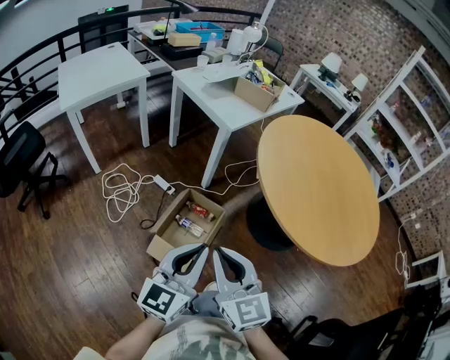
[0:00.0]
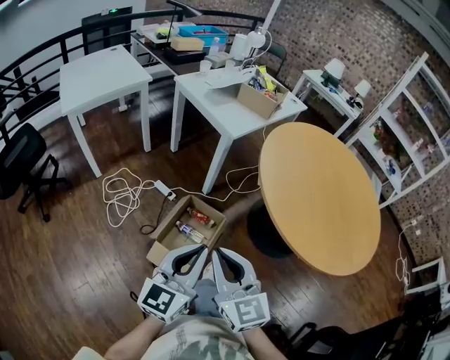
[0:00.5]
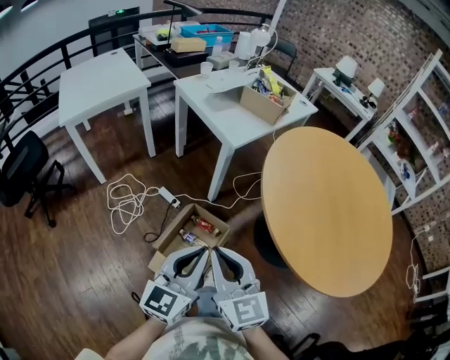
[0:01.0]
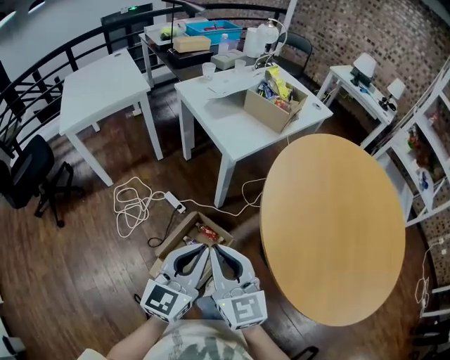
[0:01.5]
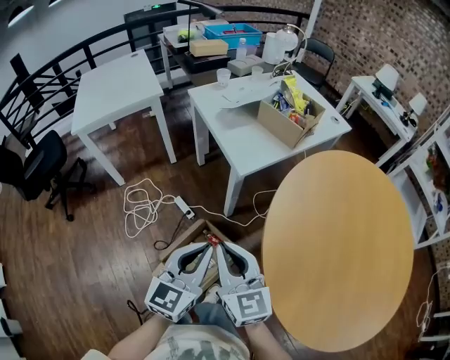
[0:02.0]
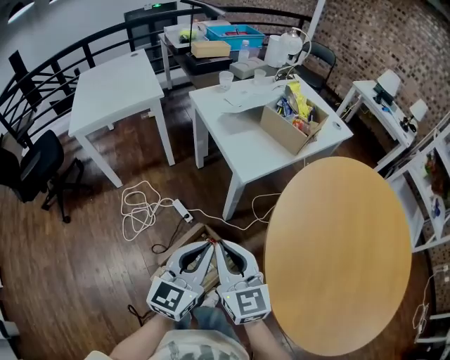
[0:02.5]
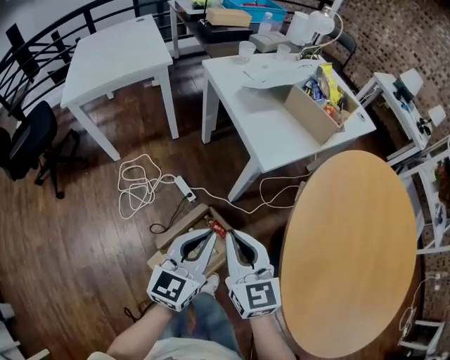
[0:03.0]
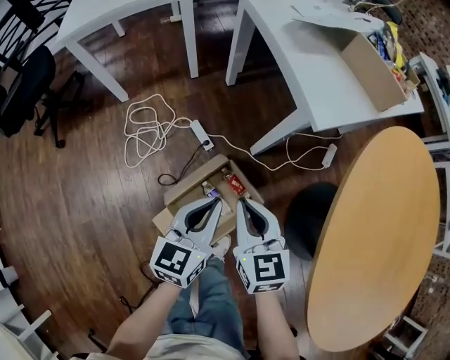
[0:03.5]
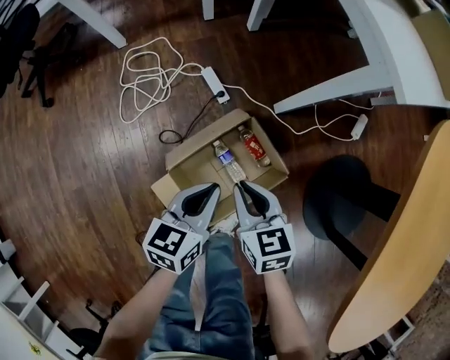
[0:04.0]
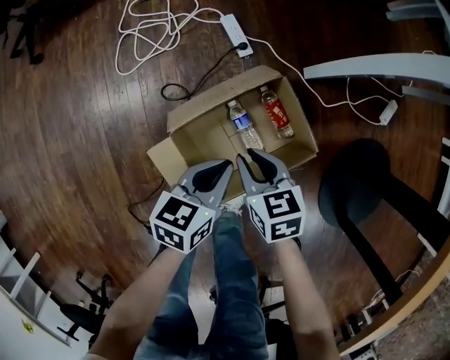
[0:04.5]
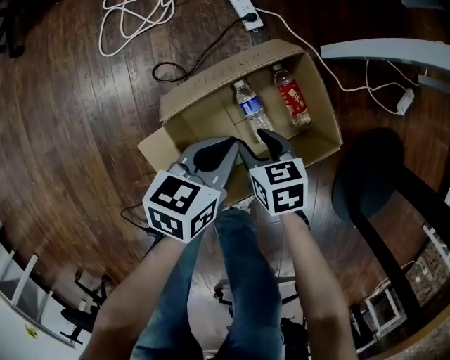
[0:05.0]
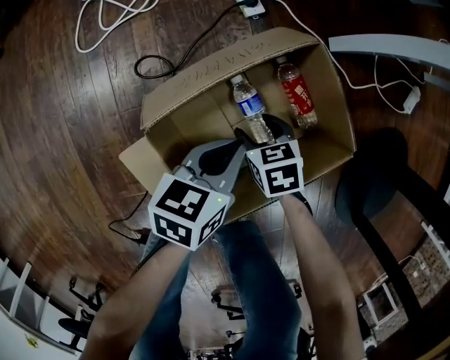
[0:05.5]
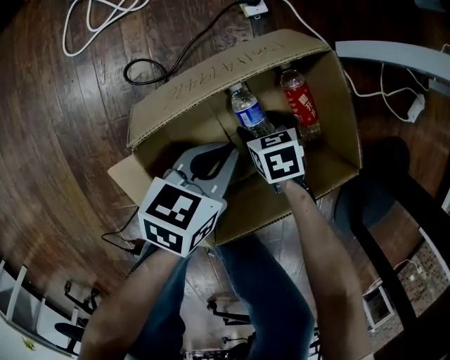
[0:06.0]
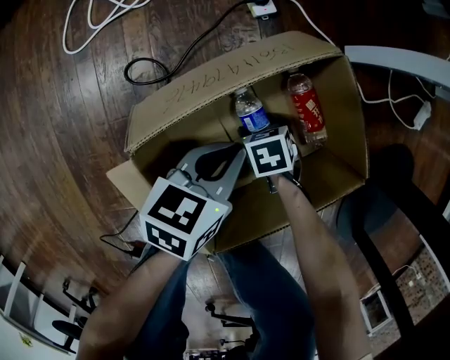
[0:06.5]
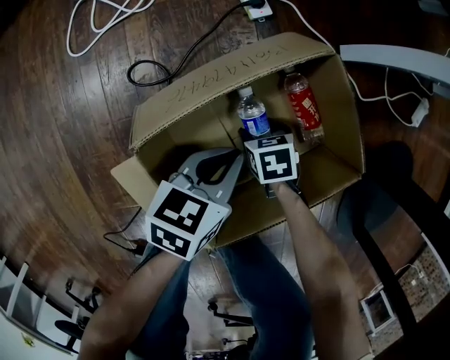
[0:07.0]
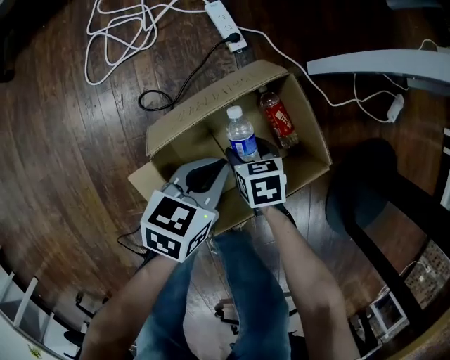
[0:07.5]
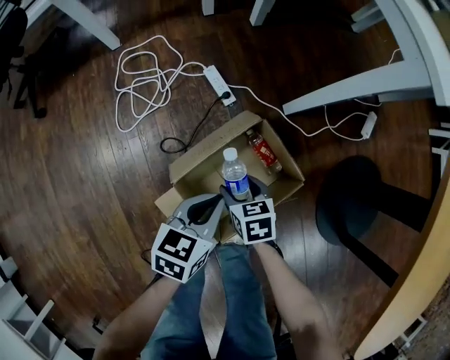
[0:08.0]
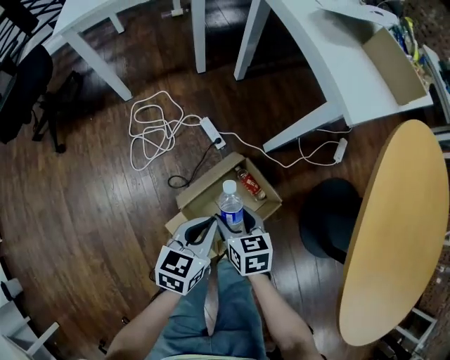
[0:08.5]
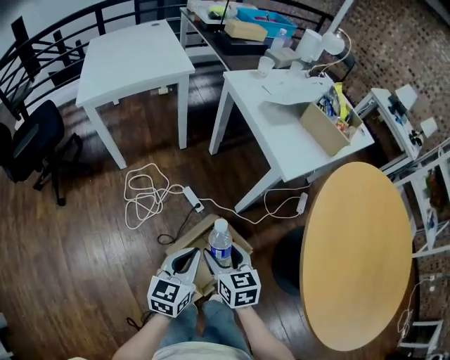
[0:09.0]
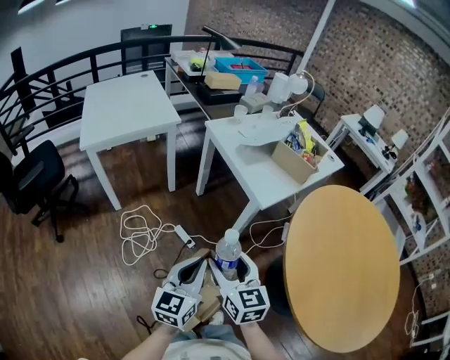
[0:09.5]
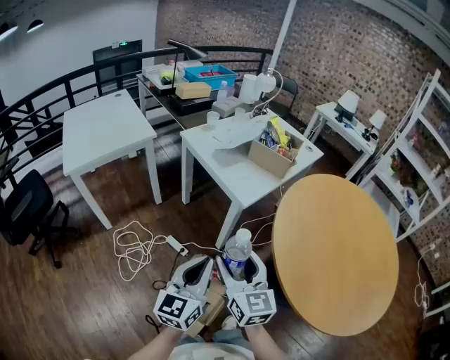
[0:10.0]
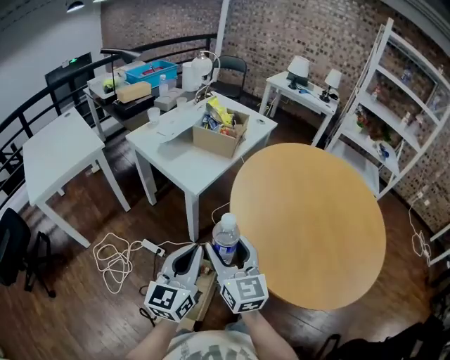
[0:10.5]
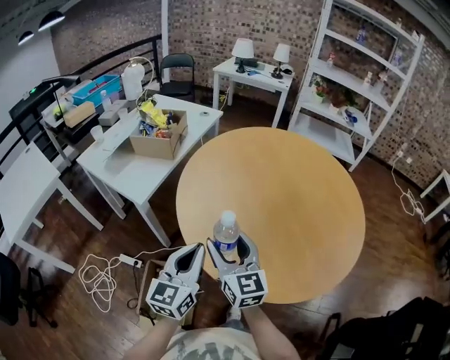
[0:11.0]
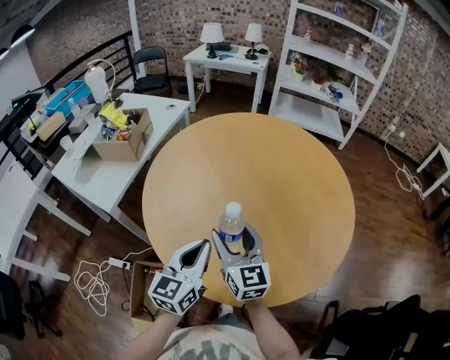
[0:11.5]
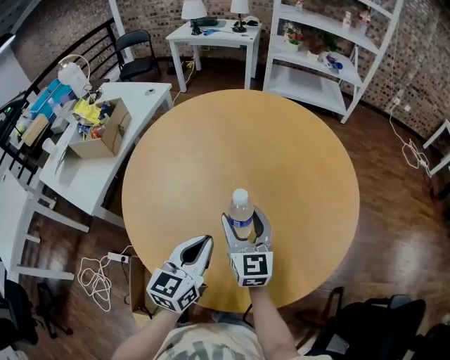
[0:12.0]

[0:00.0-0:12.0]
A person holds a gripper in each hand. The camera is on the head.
0:00.0 to 0:02.0: The two grippers go roughly 30 cm forward.
0:02.0 to 0:04.0: The two grippers go about 40 cm downward. The right gripper angles its fingers downward, by about 30 degrees. Meanwhile the left gripper turns by about 40 degrees.
0:04.0 to 0:06.0: Both grippers move downward, some 40 cm. The right gripper tilts its fingers roughly 30 degrees downward, and opens its fingers.
0:06.0 to 0:08.0: Both grippers move upward, roughly 30 cm. The right gripper swivels some 20 degrees.
0:08.0 to 0:10.0: Both grippers move upward, approximately 60 cm. The right gripper angles its fingers upward, by some 50 degrees. Meanwhile the left gripper tilts its fingers some 40 degrees upward.
0:10.0 to 0:12.0: The two grippers travel together, about 60 cm. The left gripper rotates some 40 degrees; the right gripper swivels roughly 40 degrees.

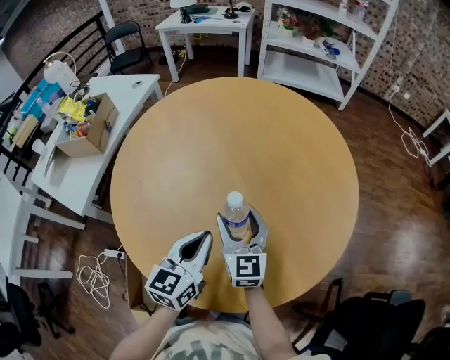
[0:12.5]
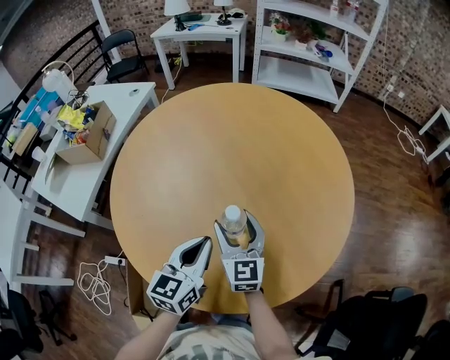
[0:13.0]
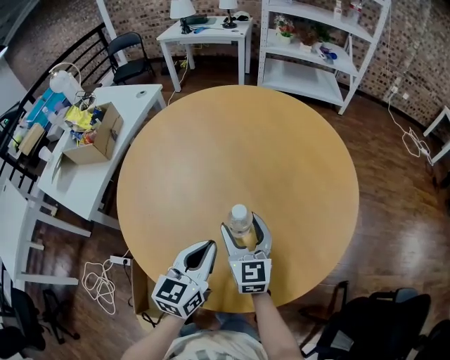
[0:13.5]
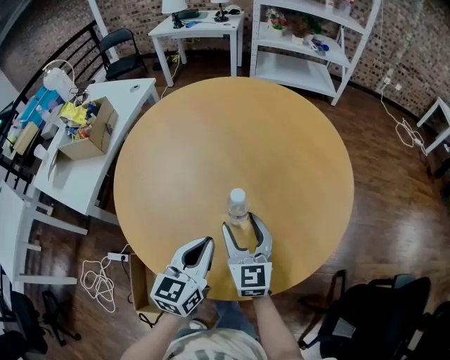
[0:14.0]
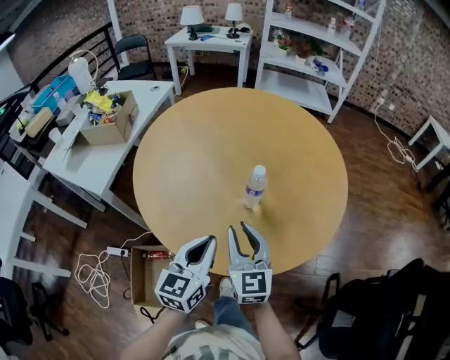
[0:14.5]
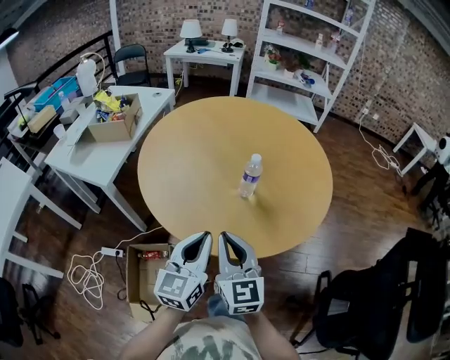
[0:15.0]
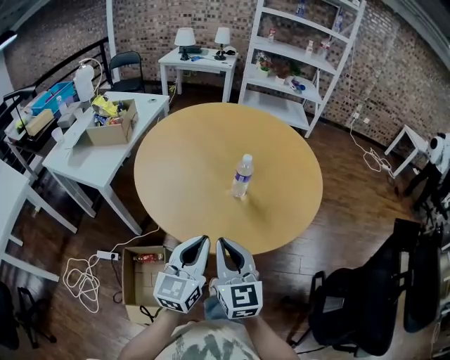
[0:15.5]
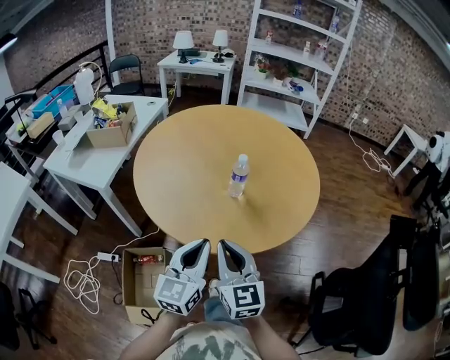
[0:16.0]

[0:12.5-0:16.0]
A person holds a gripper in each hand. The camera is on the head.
0:12.5 to 0:14.5: Both grippers travel together backward, roughly 15 cm. The right gripper closes.
0:14.5 to 0:16.0: The two grippers go about 15 cm backward.

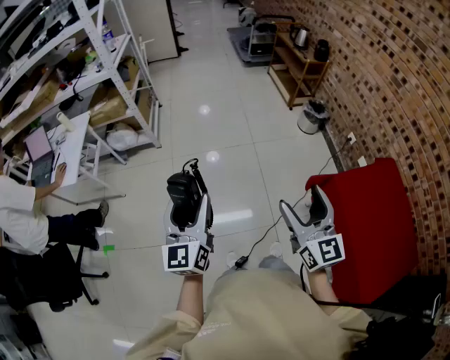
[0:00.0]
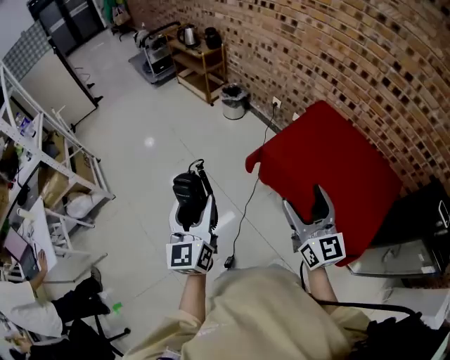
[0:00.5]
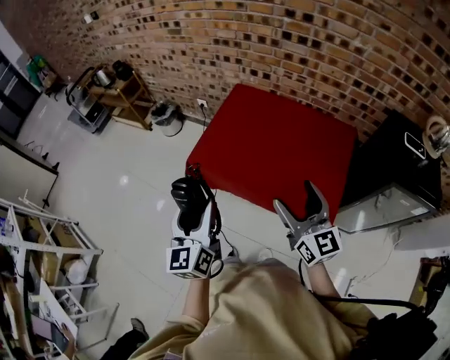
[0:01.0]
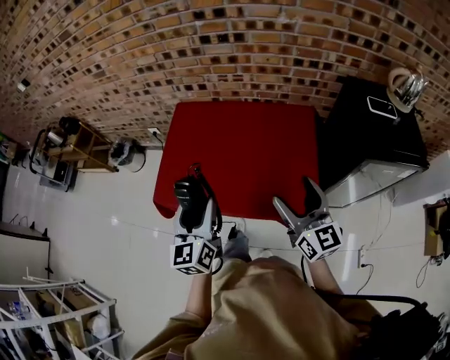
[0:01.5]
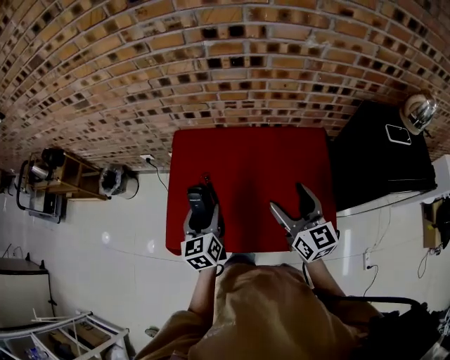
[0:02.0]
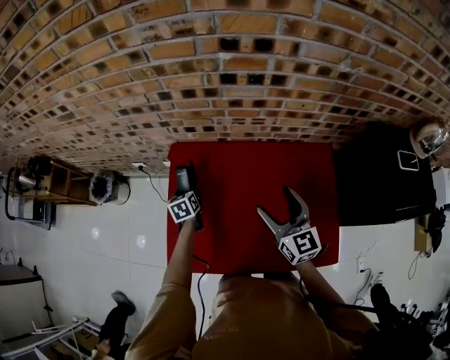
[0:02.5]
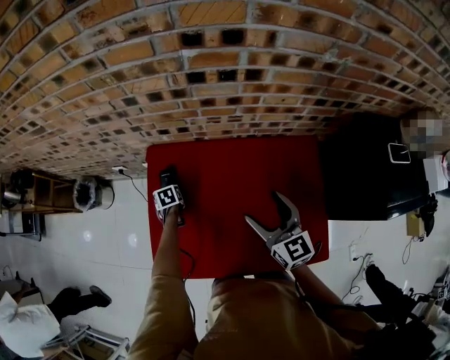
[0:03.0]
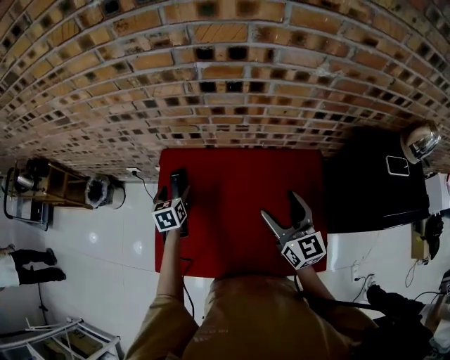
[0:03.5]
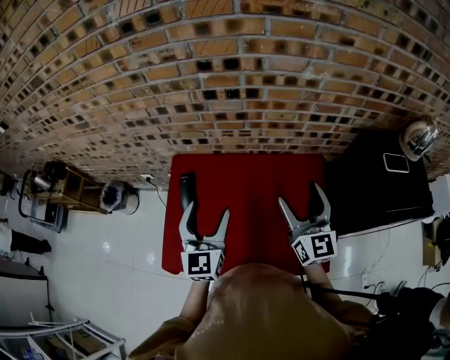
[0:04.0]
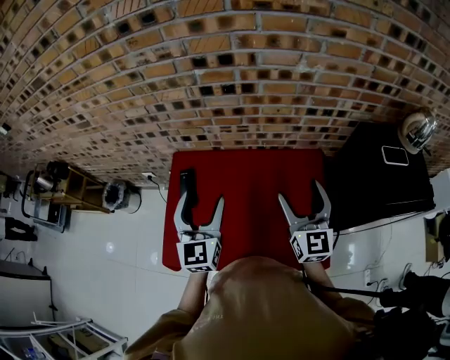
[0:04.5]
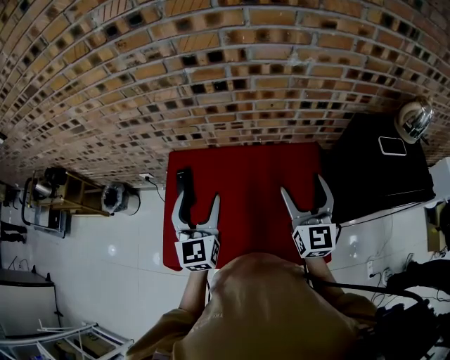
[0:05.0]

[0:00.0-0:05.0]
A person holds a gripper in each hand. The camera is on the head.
0:00.0 to 0:02.5: The two grippers travel together, approximately 1 m. The left gripper tips its fingers downward by about 60 degrees; the right gripper rotates approximately 60 degrees.
0:02.5 to 0:05.0: The left gripper heads upward, backward and to the right, covering about 50 cm, and angles its fingers upward, by roughly 40 degrees, while the right gripper goes some 25 cm to the right, upward and backward.

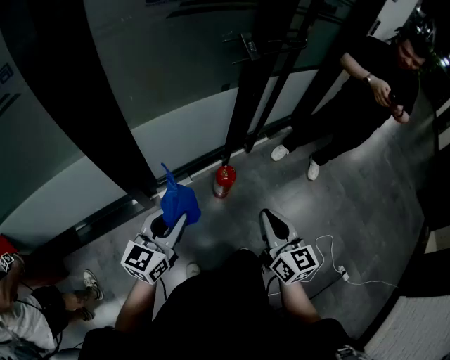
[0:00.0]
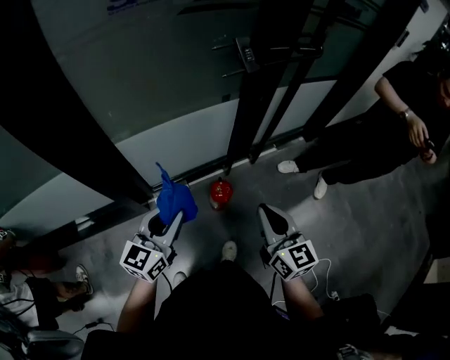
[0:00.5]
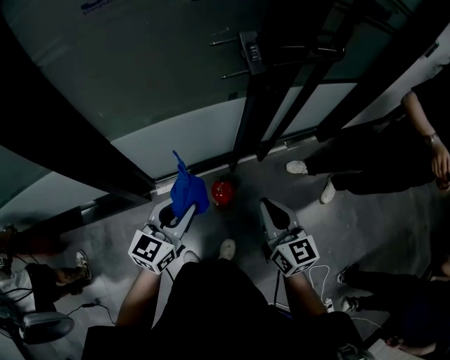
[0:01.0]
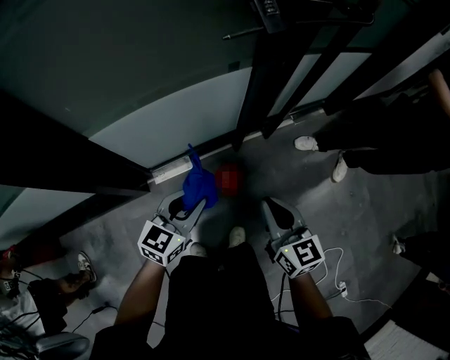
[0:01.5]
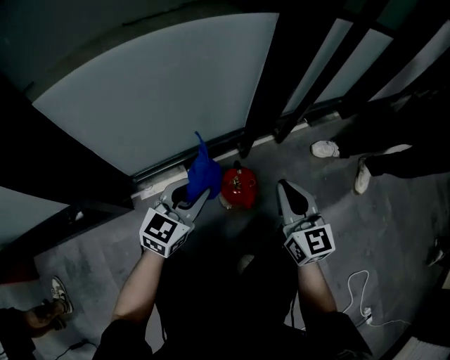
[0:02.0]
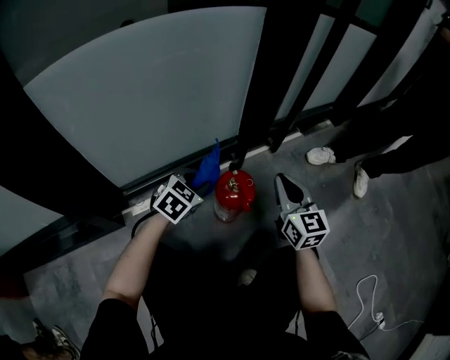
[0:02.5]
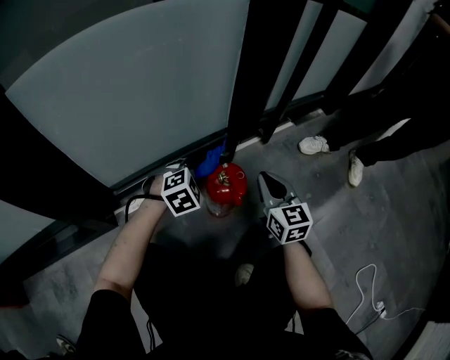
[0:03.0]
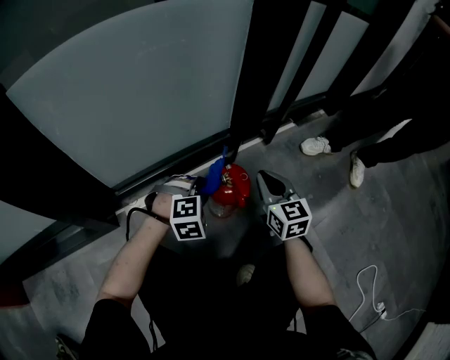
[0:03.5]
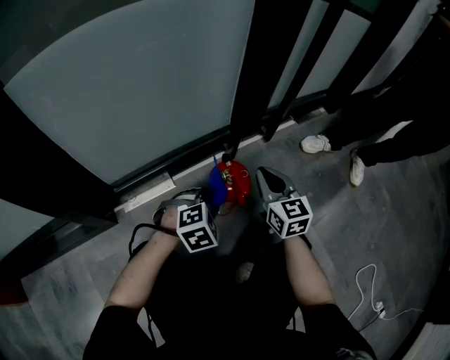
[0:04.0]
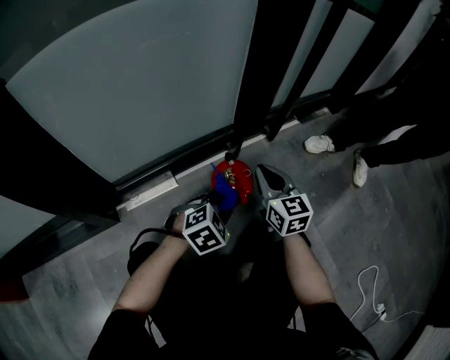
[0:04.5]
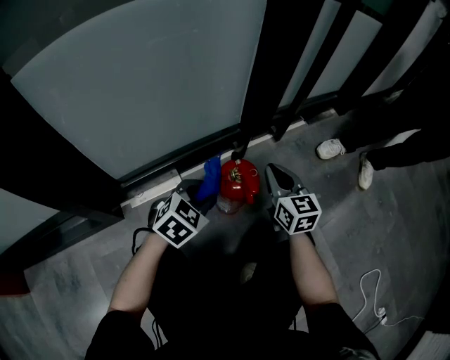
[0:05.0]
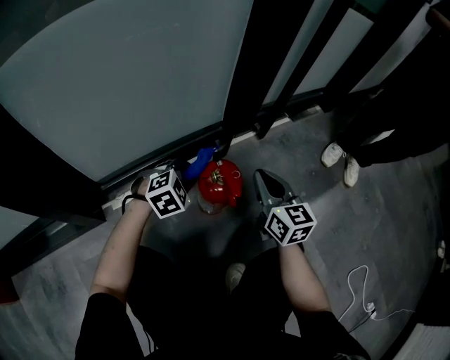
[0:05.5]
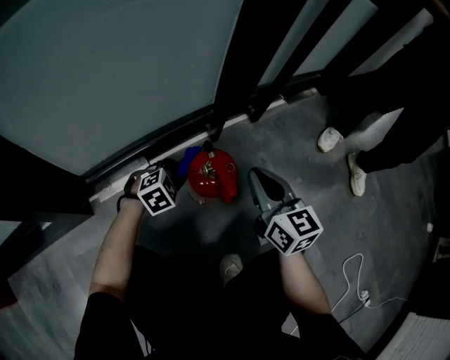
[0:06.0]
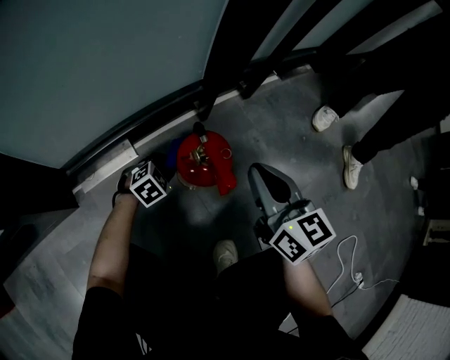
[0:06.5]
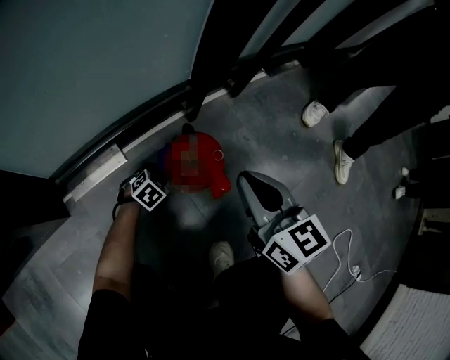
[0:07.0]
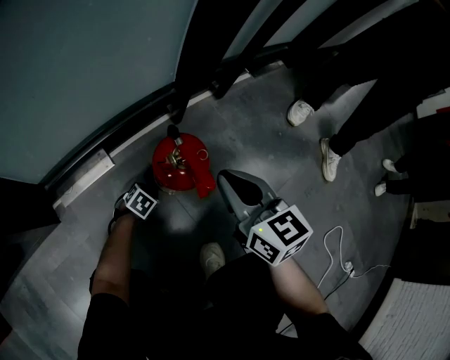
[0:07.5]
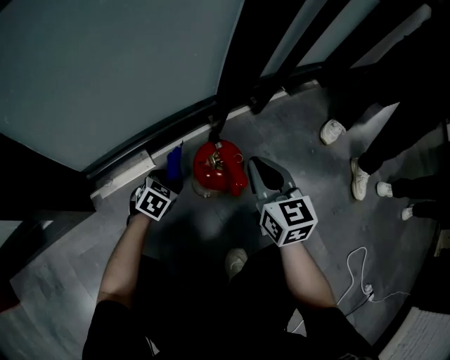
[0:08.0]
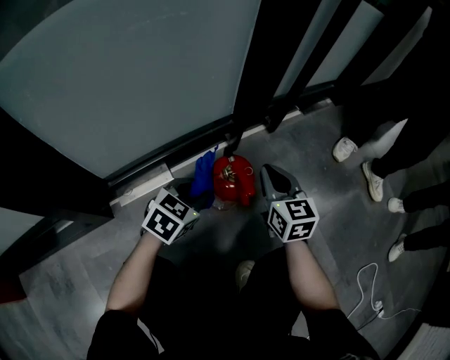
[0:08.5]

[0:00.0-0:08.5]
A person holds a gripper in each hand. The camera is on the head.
0:00.0 to 0:02.0: The two grippers go roughly 60 cm downward and forward.
0:02.0 to 0:04.0: The right gripper is displaced downward by some 15 cm. Meanwhile the left gripper is displaced downward and to the right by some 20 cm, and points its fingers about 40 degrees further downward.
0:04.0 to 0:06.5: The left gripper goes some 20 cm downward.
0:06.5 to 0:08.5: The left gripper heads upward, covering roughly 20 cm, and rotates approximately 30 degrees, while the right gripper shifts by roughly 5 cm.
